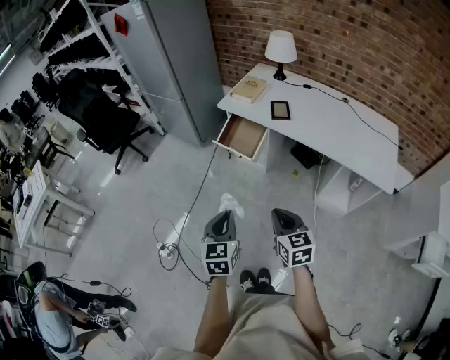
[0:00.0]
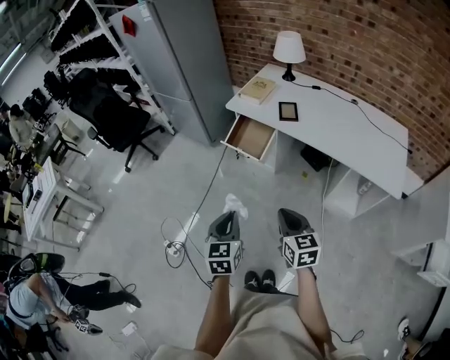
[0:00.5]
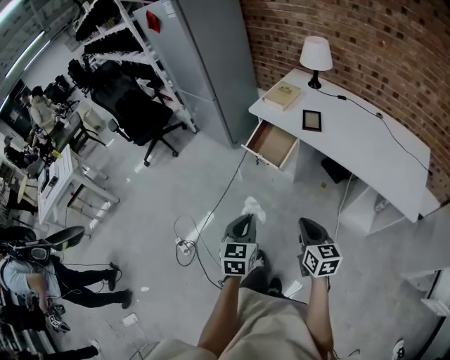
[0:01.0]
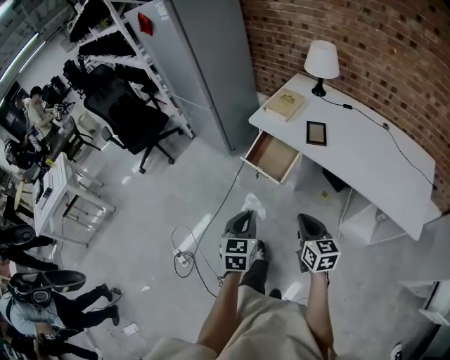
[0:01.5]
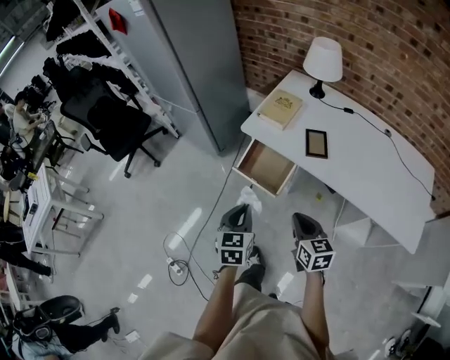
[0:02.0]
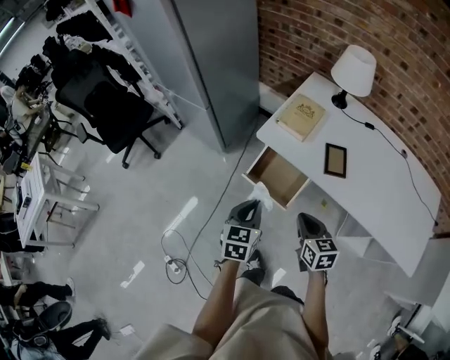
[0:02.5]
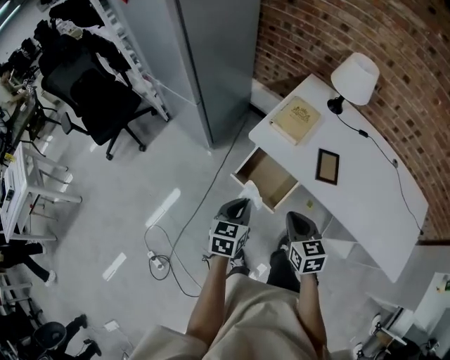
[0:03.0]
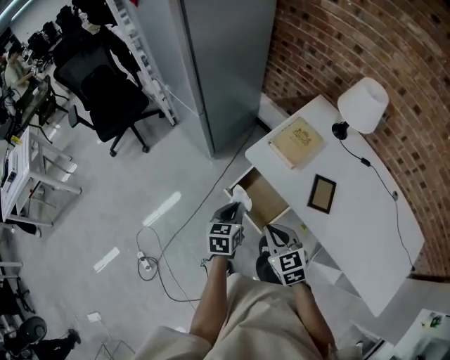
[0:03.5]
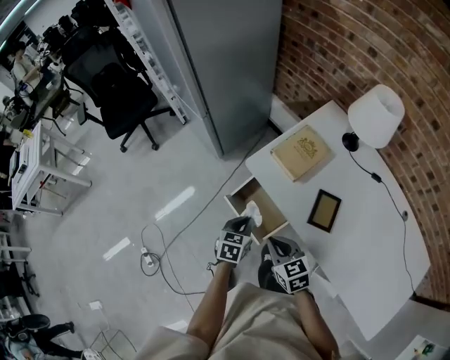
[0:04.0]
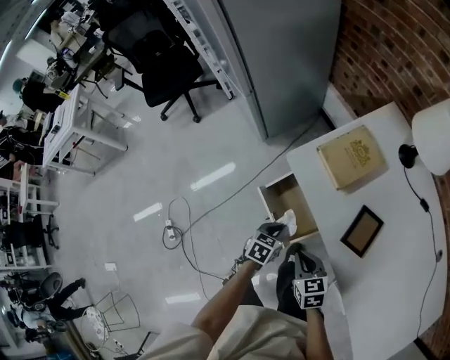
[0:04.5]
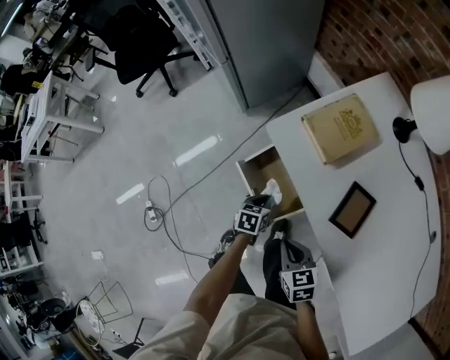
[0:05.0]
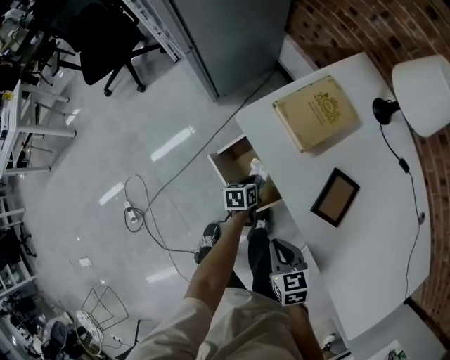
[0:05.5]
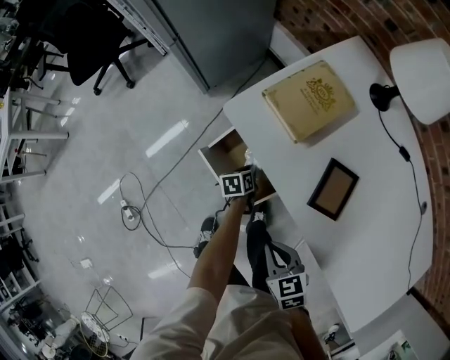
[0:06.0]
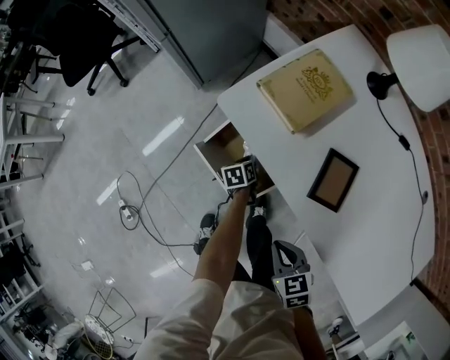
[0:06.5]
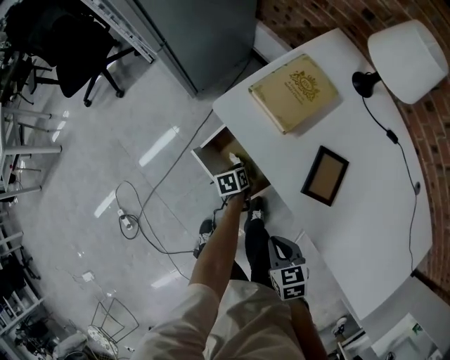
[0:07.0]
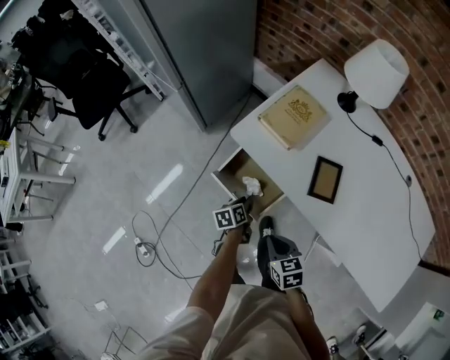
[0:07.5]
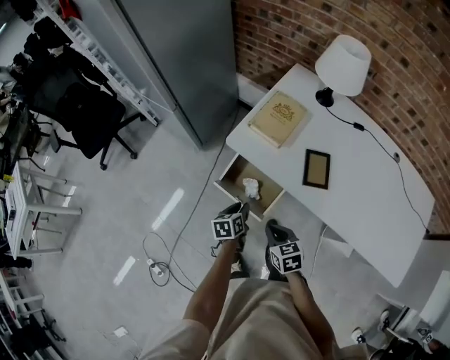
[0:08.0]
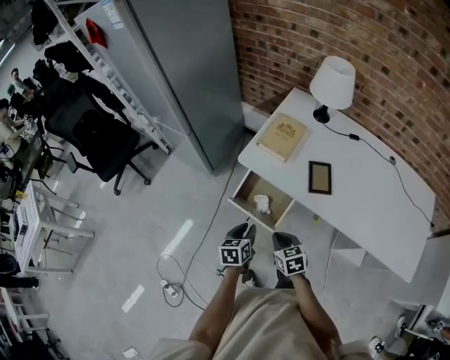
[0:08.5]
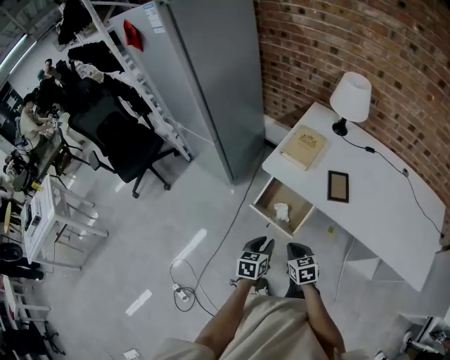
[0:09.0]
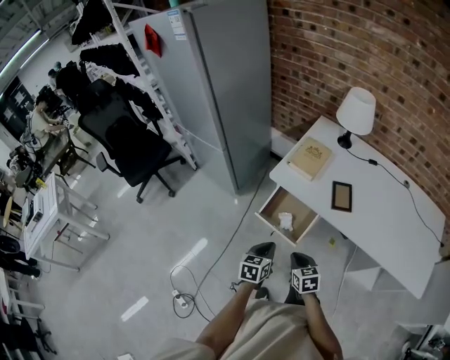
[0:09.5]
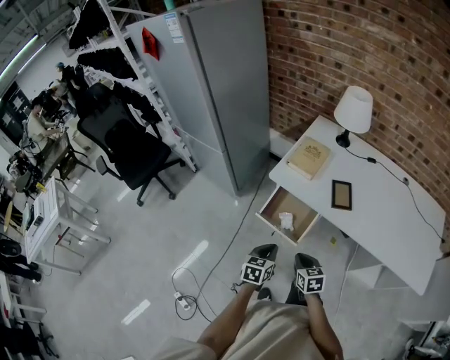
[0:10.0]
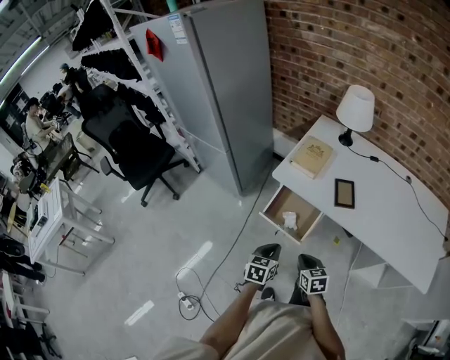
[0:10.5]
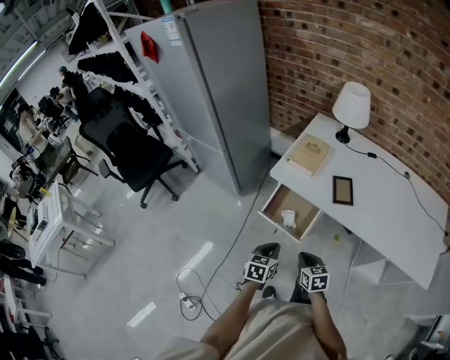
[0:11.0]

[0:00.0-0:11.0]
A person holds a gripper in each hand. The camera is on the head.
0:00.0 to 0:02.0: The grippers both shift forward by some 30 cm.
0:02.0 to 0:03.5: The left gripper travels forward and downward by about 25 cm. The right gripper heads forward and to the left, covering roughly 20 cm, and changes its angle by some 30 degrees.
0:03.5 to 0:05.5: The two grippers go roughly 30 cm downward and to the right. The left gripper turns by roughly 30 degrees. Meanwhile the right gripper changes its angle by about 20 degrees.
0:05.5 to 0:07.5: The left gripper moves backward and upward, roughly 10 cm, and opens its fingers, while the right gripper moves approximately 5 cm.
0:07.5 to 0:09.0: The right gripper shifts some 10 cm to the left, backward and upward. The left gripper shifts about 25 cm upward and backward, and rotates about 40 degrees.
0:09.0 to 0:11.0: The left gripper closes up.

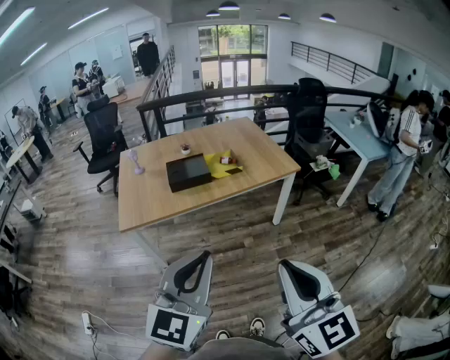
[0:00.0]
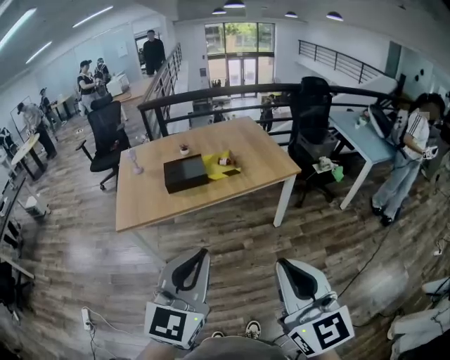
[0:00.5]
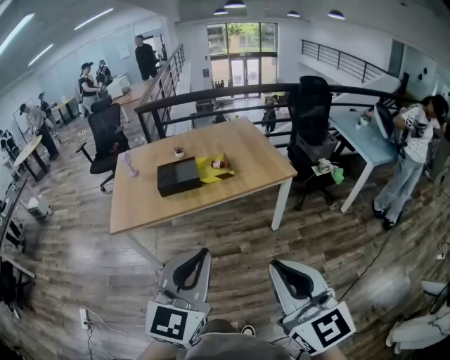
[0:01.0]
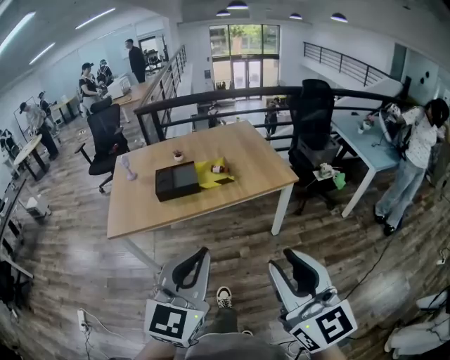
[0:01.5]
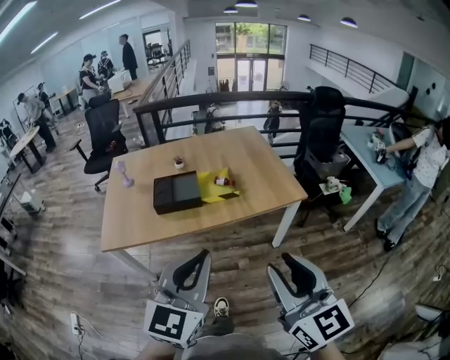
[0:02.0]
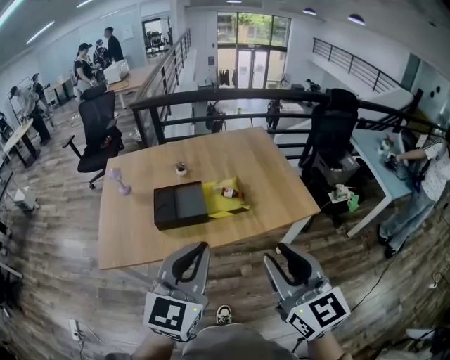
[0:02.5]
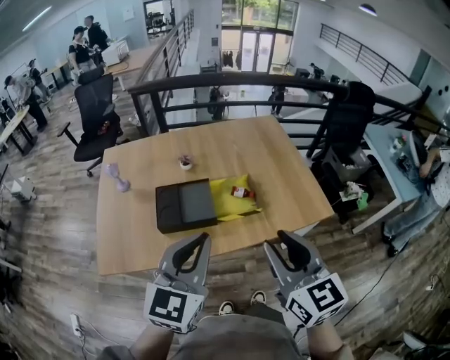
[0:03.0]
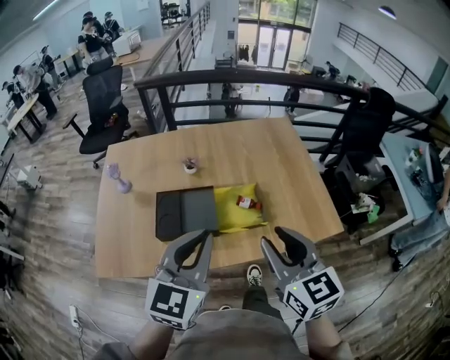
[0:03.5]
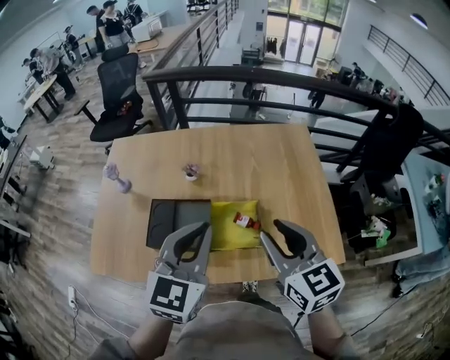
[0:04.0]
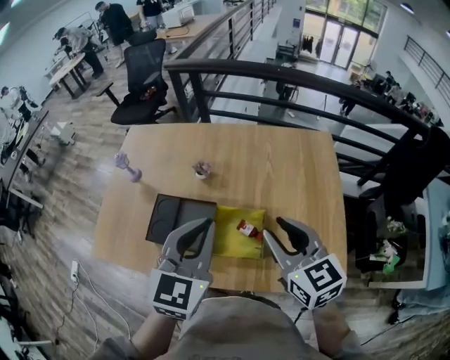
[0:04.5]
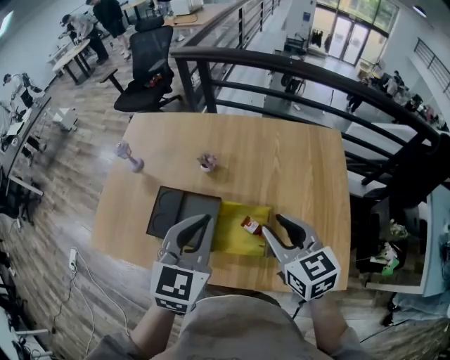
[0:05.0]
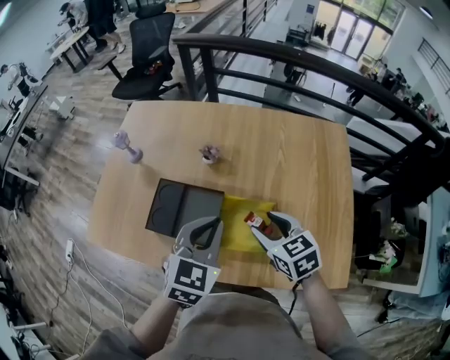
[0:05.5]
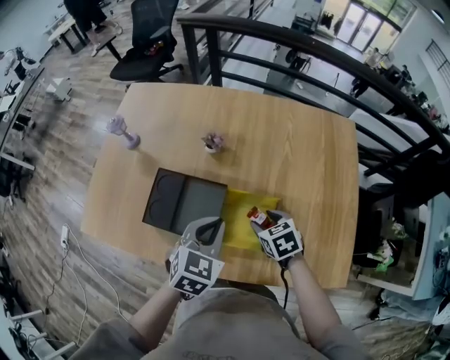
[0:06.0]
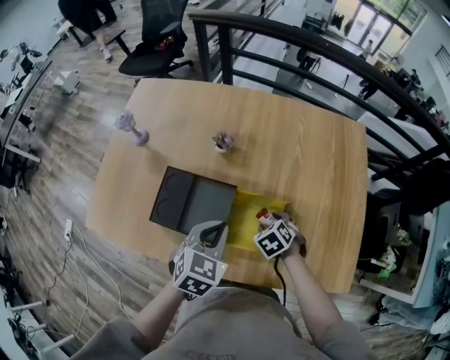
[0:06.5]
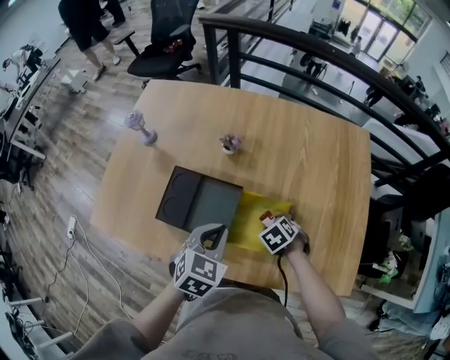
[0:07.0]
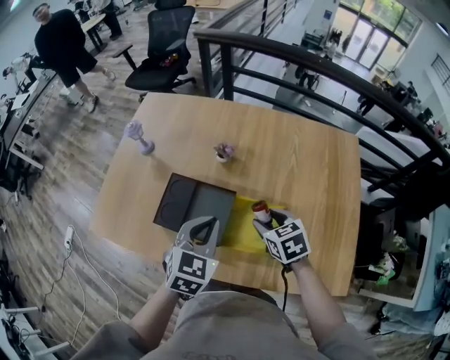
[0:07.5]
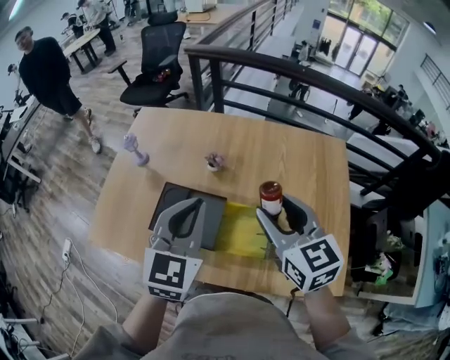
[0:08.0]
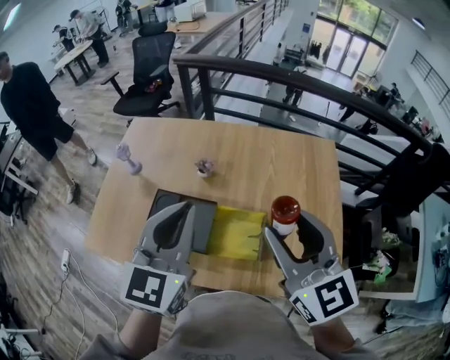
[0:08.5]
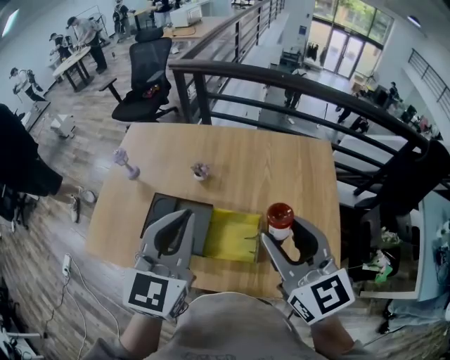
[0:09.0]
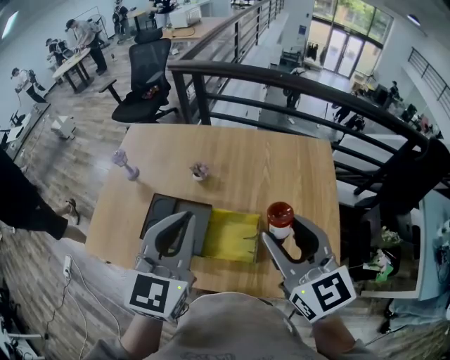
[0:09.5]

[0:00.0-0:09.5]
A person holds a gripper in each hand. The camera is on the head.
0:00.0 to 0:02.0: The right gripper is displaced forward by roughly 25 cm, and opens its fingers; the left gripper heads forward and to the right, covering some 25 cm.
0:02.0 to 0:04.0: The pair of grippers is taken forward, about 50 cm. The right gripper turns by approximately 20 degrees.
0:04.0 to 0:05.5: The two grippers go roughly 15 cm downward and forward. The right gripper swivels about 30 degrees.
0:05.5 to 0:07.5: The right gripper travels downward and back again, some 20 cm each way.
0:07.5 to 0:09.5: Both grippers move upward, some 25 cm. The right gripper tips its fingers upward by some 40 degrees. Meanwhile the left gripper rotates roughly 20 degrees.

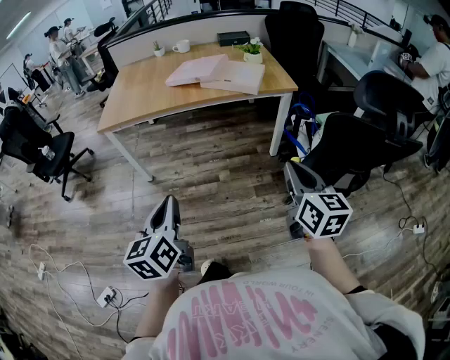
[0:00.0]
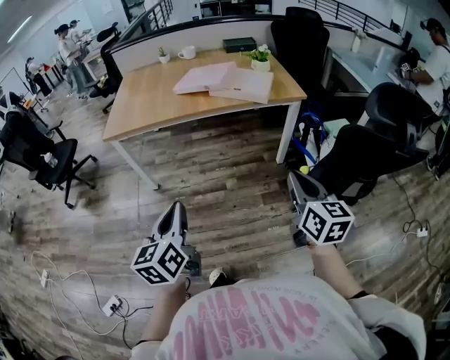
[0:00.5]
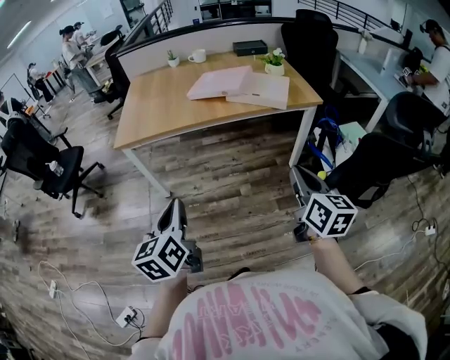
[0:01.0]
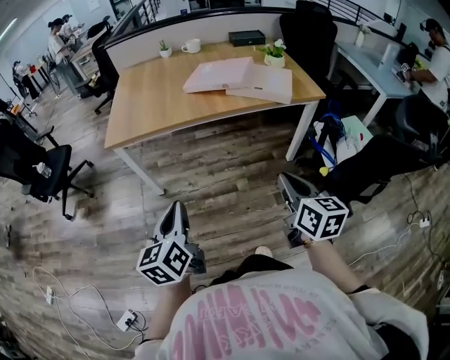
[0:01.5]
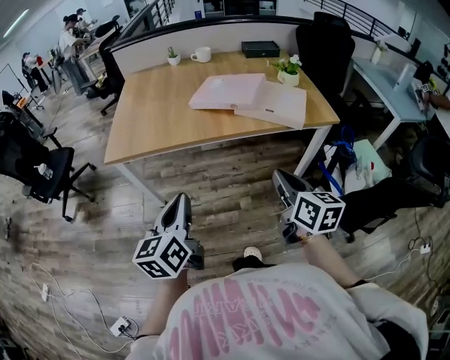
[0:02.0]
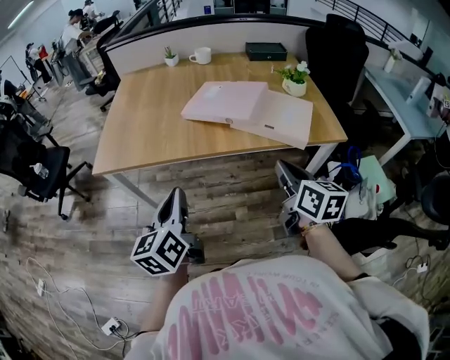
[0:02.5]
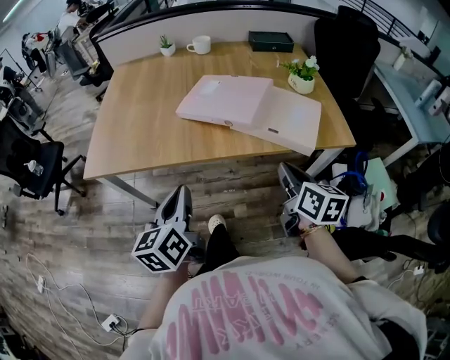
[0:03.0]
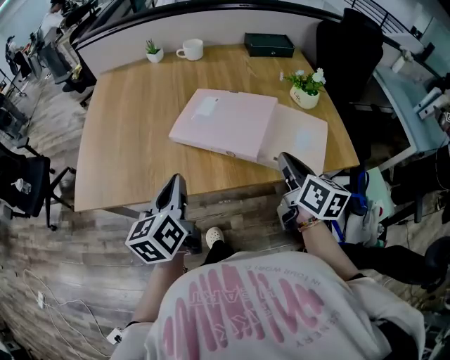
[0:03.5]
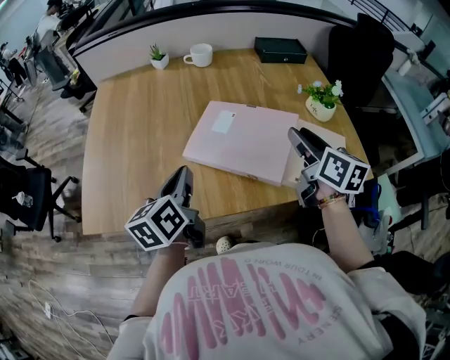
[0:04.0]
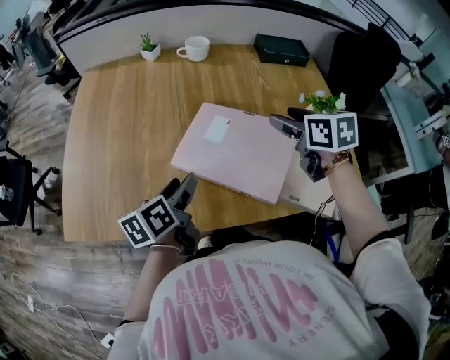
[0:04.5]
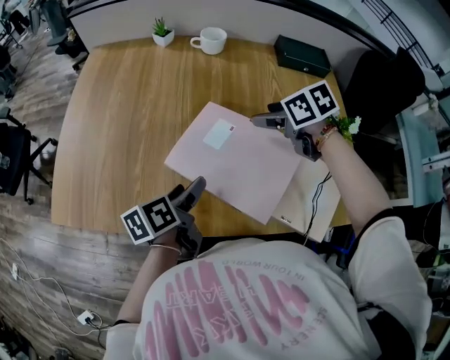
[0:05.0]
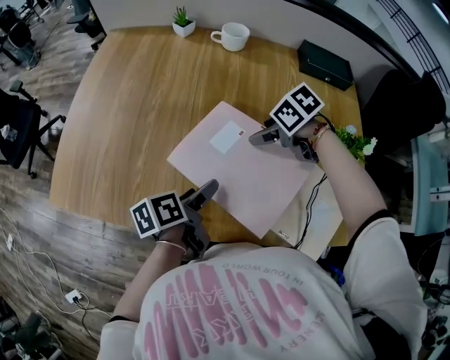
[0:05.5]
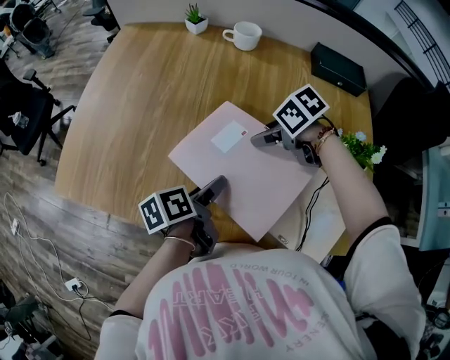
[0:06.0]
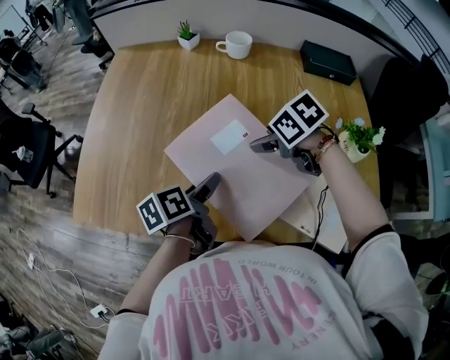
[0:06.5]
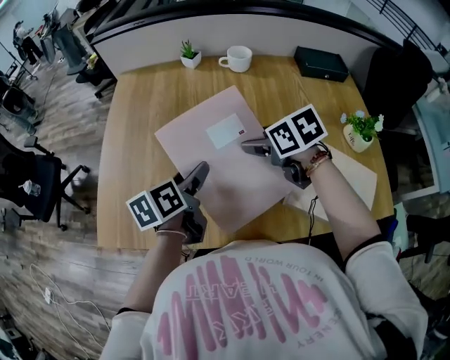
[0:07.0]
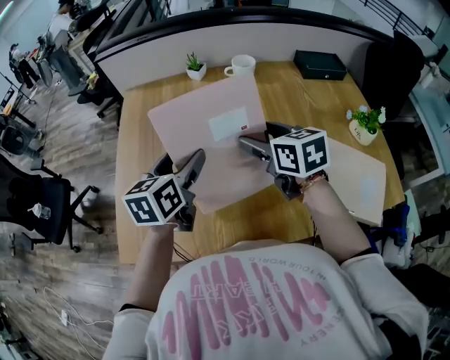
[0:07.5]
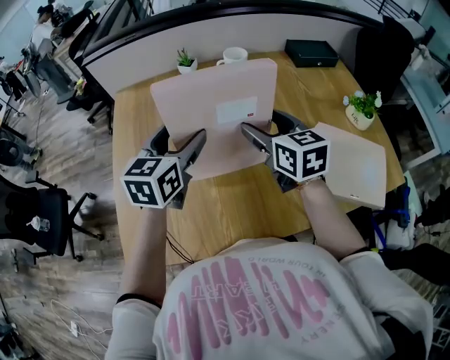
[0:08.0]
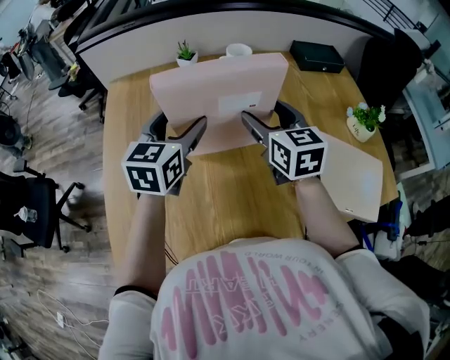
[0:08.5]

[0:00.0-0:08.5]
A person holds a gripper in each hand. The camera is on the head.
0:00.0 to 0:02.0: Both grippers travel together forward and to the left, approximately 30 cm.
0:02.0 to 0:04.0: Both grippers are carried forward, about 40 cm. The right gripper opens.
0:04.0 to 0:06.5: The right gripper moves approximately 25 cm, and tips its fingers downward by about 40 degrees; the left gripper moves downward, some 10 cm, turns by roughly 30 degrees, and opens up.
0:06.5 to 0:08.5: The right gripper shifts by approximately 15 cm, and tilts its fingers some 40 degrees upward, while the left gripper moves approximately 30 cm, and twists some 70 degrees clockwise, seen from behind.
